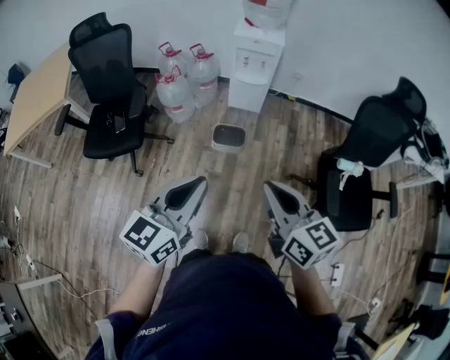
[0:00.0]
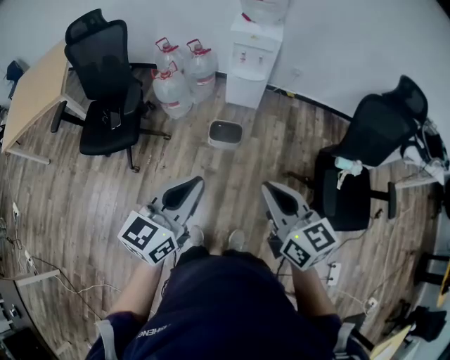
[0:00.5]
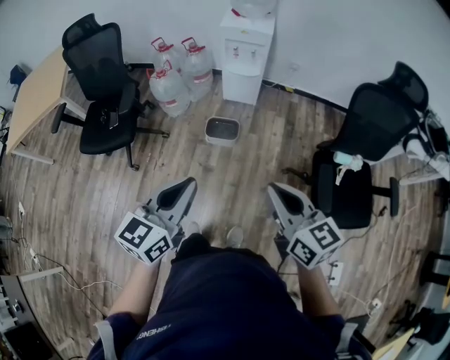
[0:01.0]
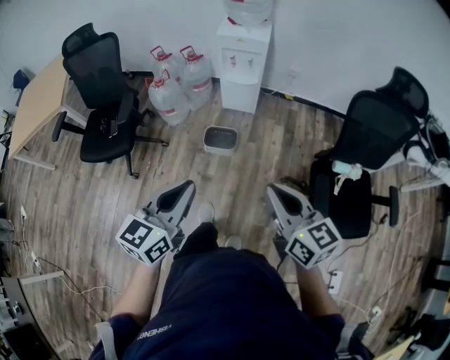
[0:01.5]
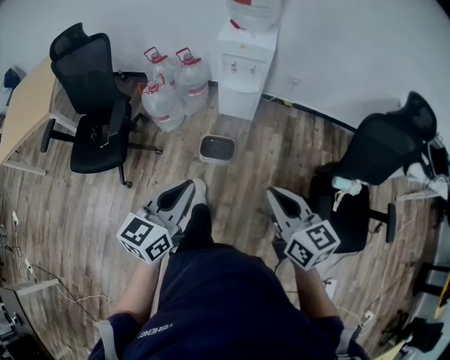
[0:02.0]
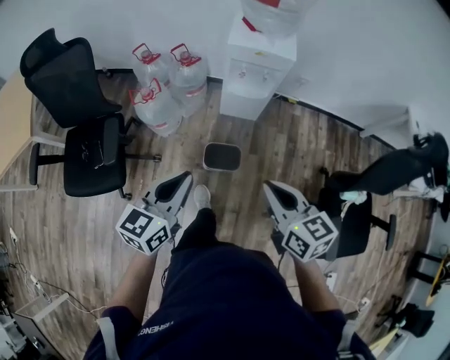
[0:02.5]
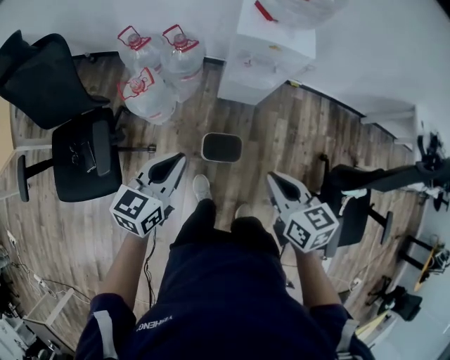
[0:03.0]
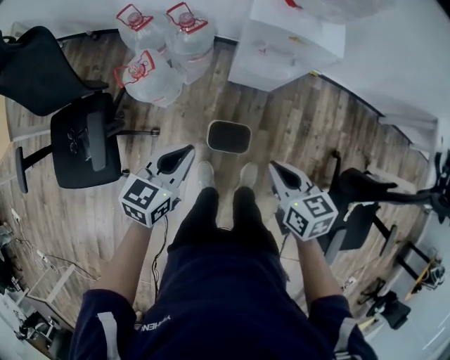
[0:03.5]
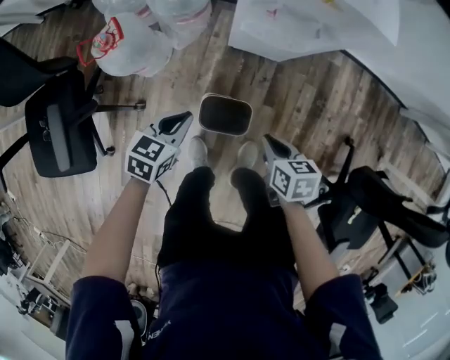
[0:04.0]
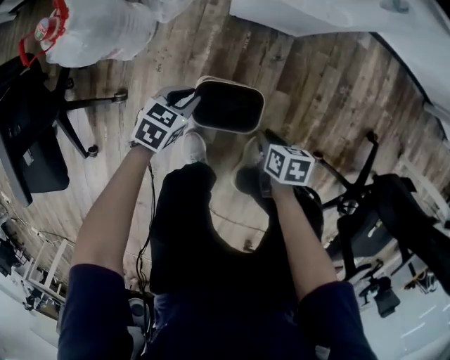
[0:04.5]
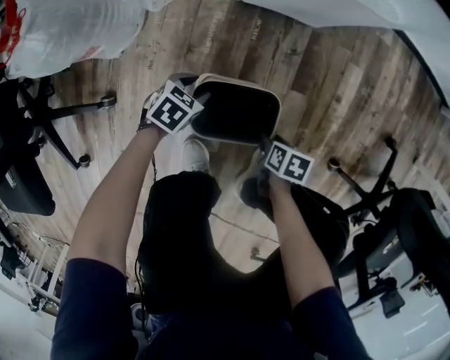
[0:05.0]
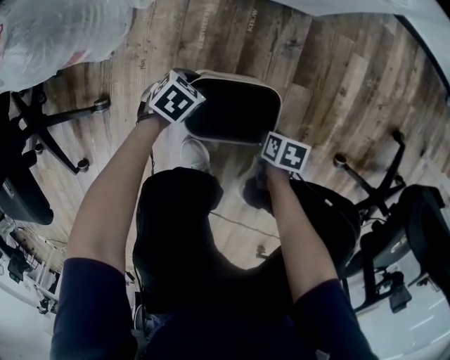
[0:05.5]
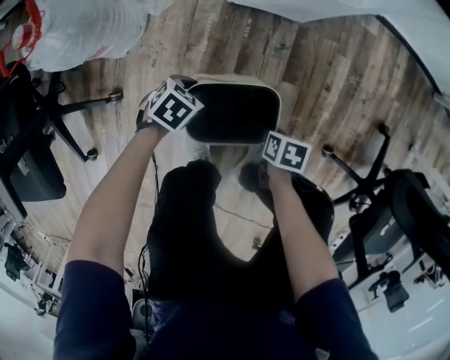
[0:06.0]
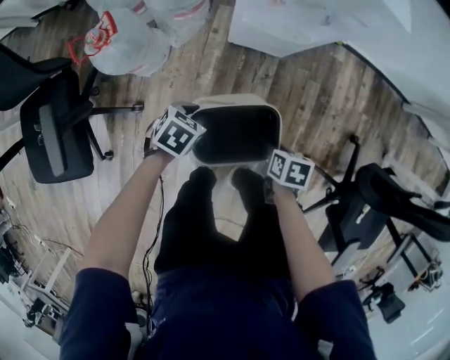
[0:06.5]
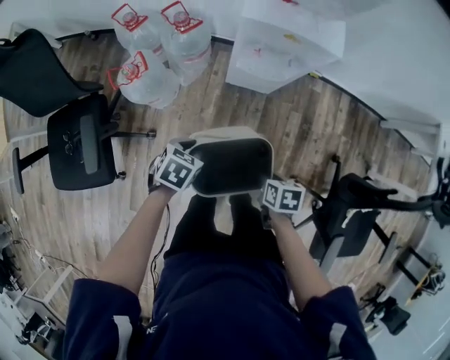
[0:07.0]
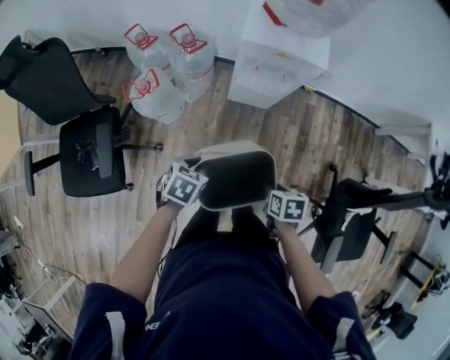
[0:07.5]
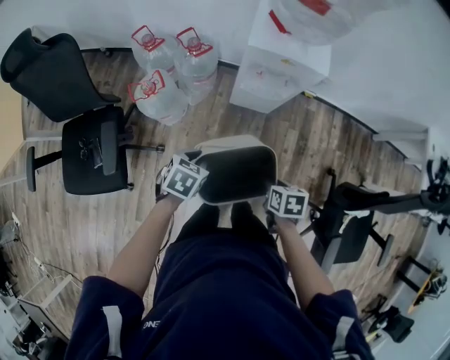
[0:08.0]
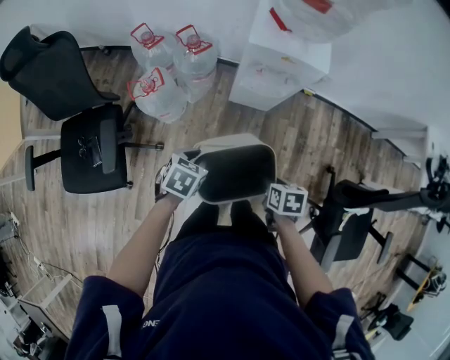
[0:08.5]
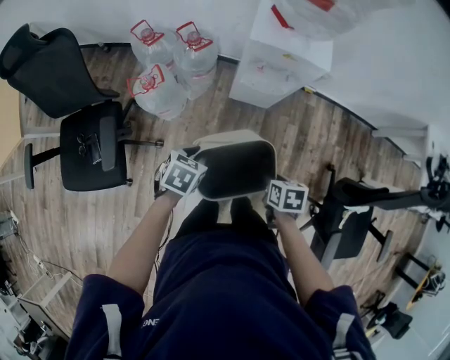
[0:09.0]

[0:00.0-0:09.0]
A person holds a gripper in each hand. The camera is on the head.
0:00.0 to 0:02.0: The right gripper travels forward, to the right and downward by approximately 20 cm. The left gripper heads forward, downward and to the right, covering some 15 cm.
0:02.0 to 0:04.5: Both grippers move downward and forward, approximately 80 cm. The right gripper tilts its fingers approximately 50 degrees downward. The left gripper angles its fingers downward, by approximately 40 degrees.
0:04.5 to 0:07.0: Both grippers travel together upward, roughly 35 cm. The left gripper opens and closes again; the right gripper opens, then closes once more.
0:07.0 to 0:09.0: The two grippers go roughly 10 cm upward.

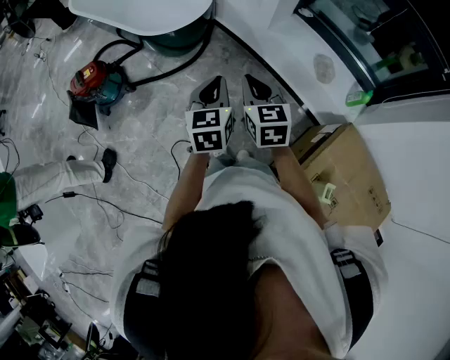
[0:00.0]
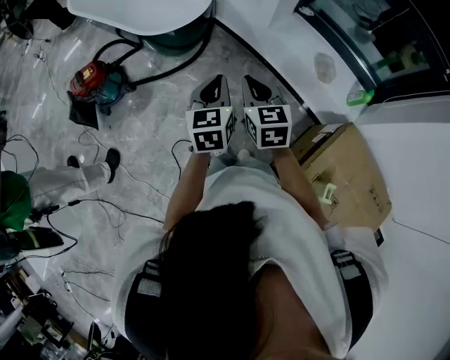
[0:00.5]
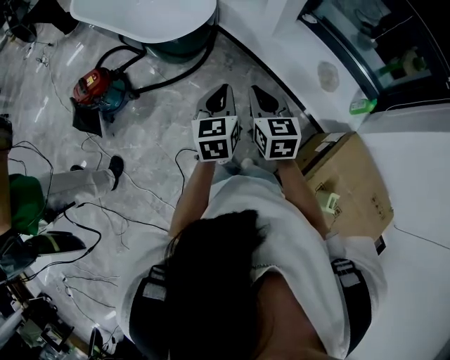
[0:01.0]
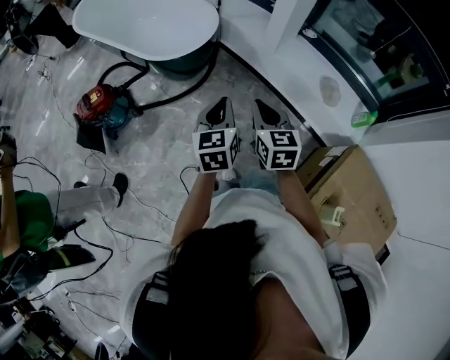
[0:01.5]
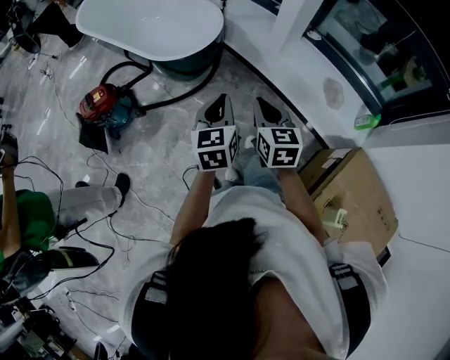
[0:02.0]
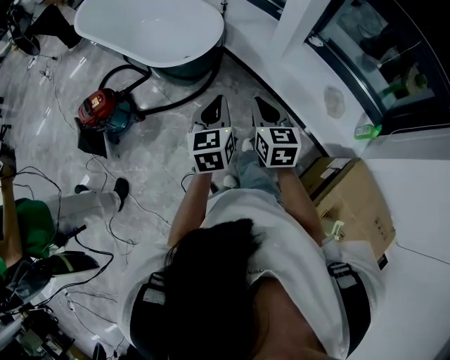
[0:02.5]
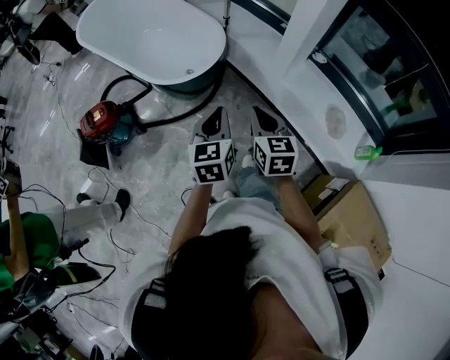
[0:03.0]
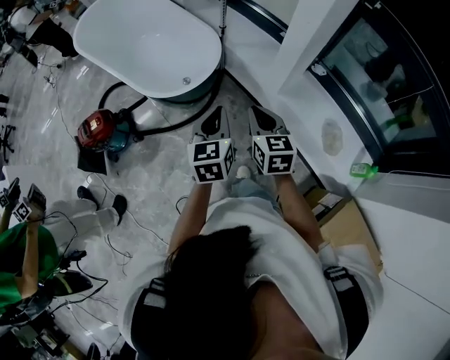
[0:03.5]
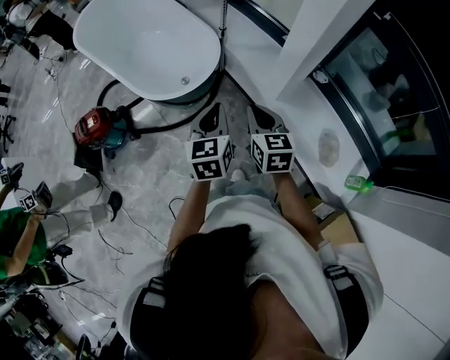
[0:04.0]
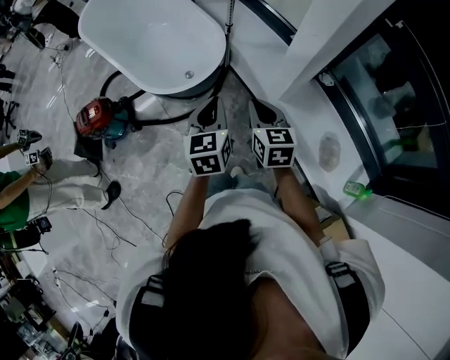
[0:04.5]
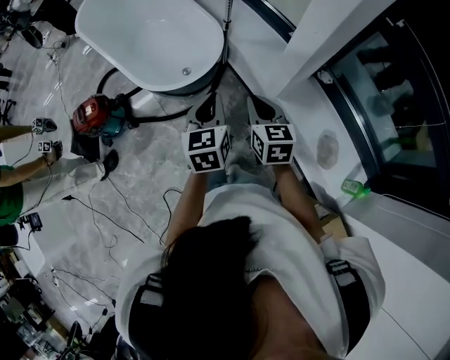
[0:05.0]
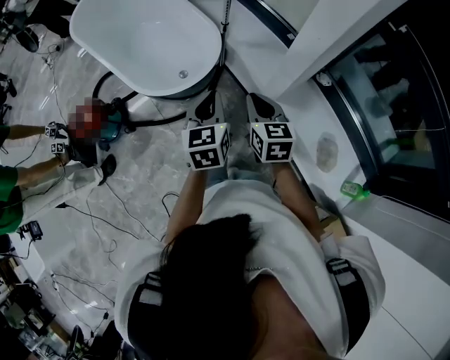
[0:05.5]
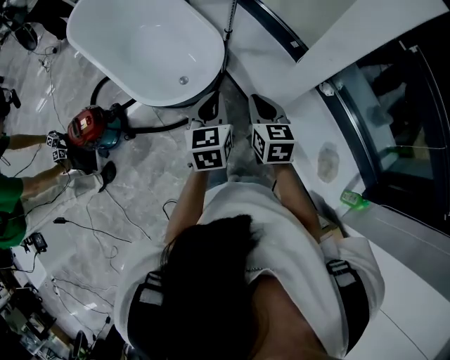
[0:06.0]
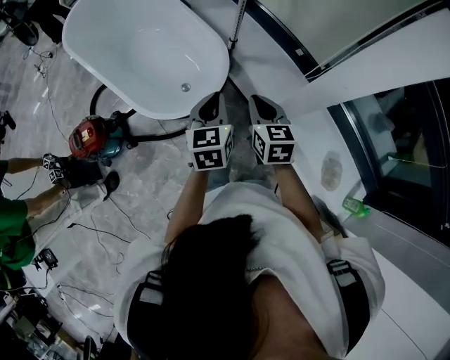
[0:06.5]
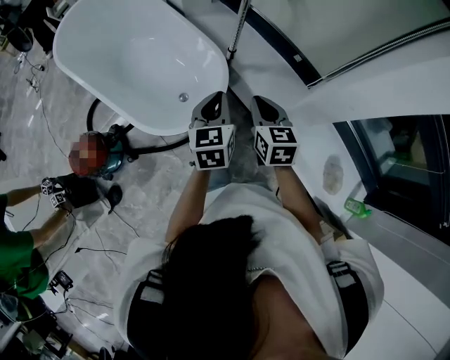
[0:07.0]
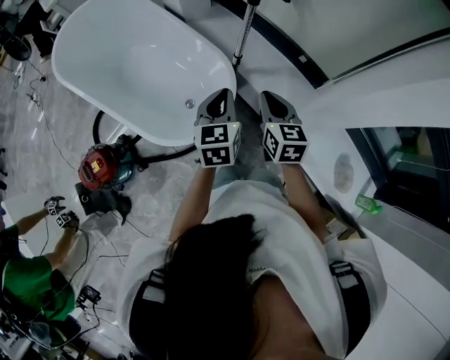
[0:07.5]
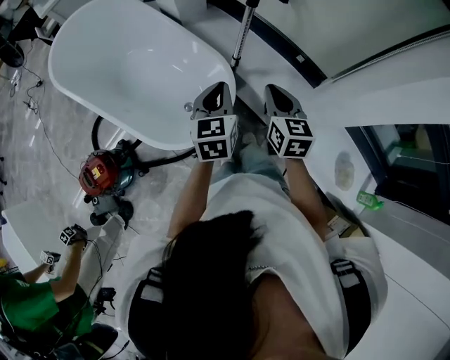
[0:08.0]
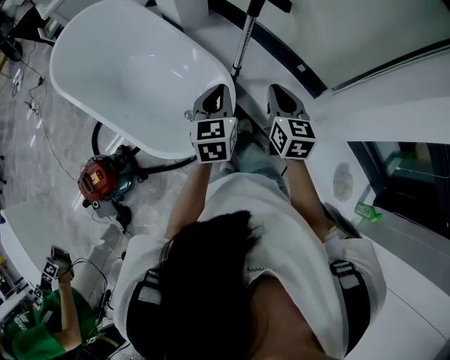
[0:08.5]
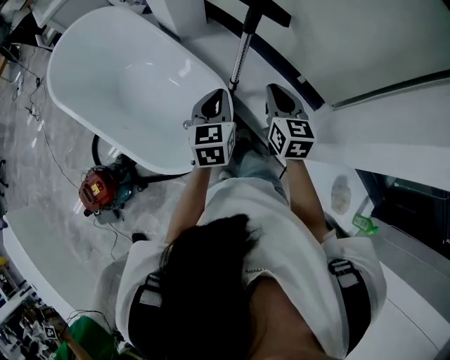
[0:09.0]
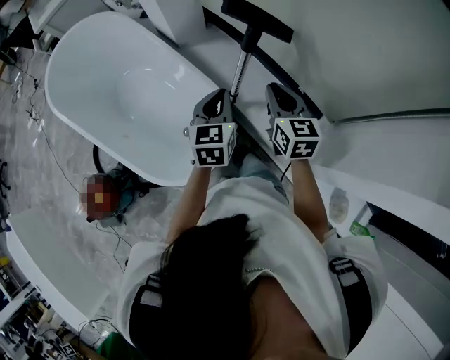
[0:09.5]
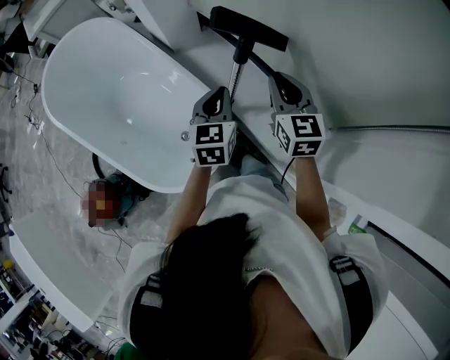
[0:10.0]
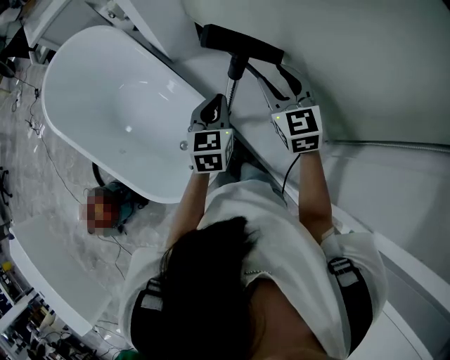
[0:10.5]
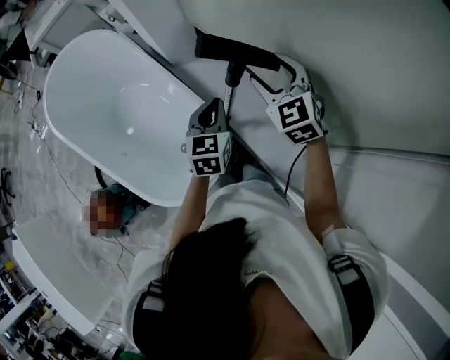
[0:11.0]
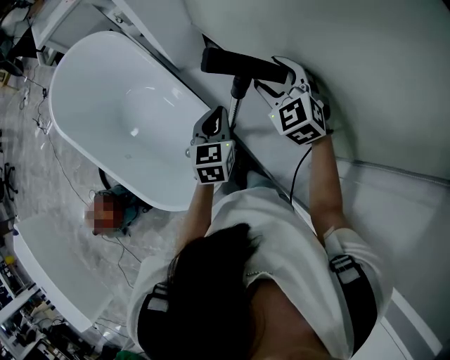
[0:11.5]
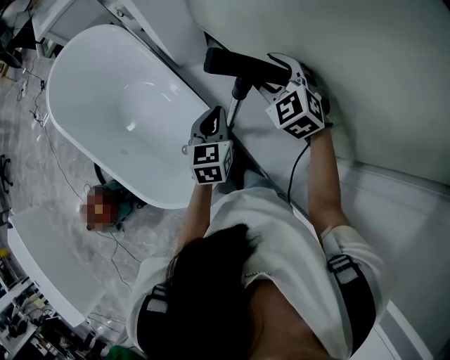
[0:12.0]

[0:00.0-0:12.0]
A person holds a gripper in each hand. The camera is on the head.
0:00.0 to 0:02.0: The right gripper shifts approximately 5 cm forward; the left gripper goes approximately 10 cm forward and to the left.
0:02.0 to 0:04.0: The two grippers go some 25 cm forward.
0:04.0 to 0:06.0: The two grippers go some 10 cm forward.
0:06.0 to 0:08.0: Both grippers move forward, approximately 20 cm.
0:08.0 to 0:10.0: The grippers both shift forward by about 20 cm.
0:10.0 to 0:12.0: The right gripper is displaced forward by approximately 10 cm, twists approximately 40 degrees counterclockwise, seen from behind, and opens up, while the left gripper shifts by some 5 cm.

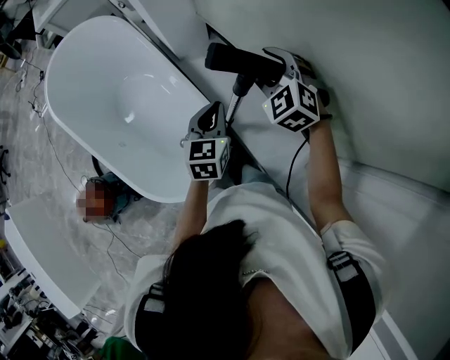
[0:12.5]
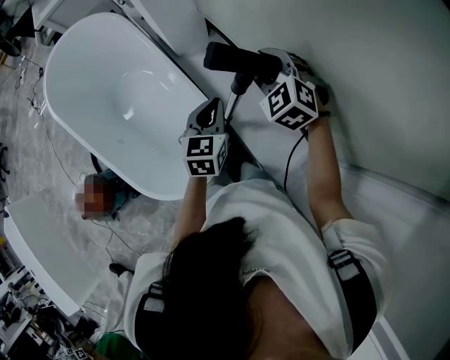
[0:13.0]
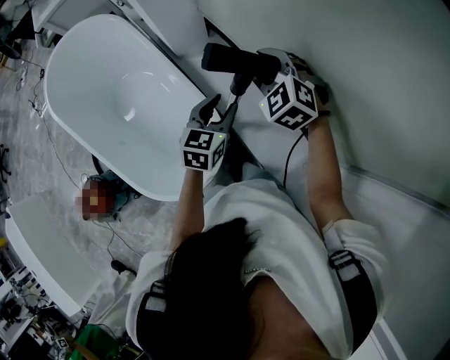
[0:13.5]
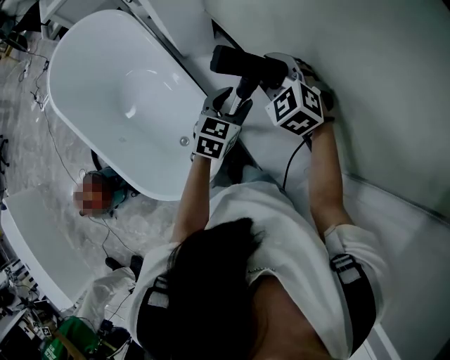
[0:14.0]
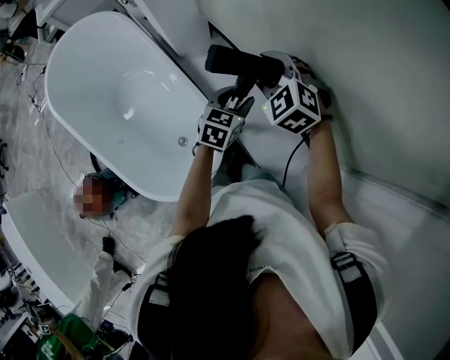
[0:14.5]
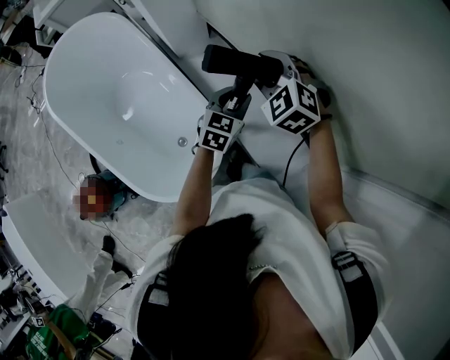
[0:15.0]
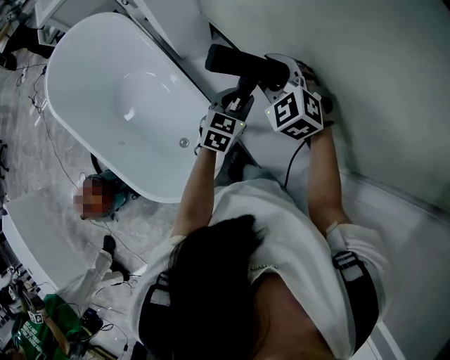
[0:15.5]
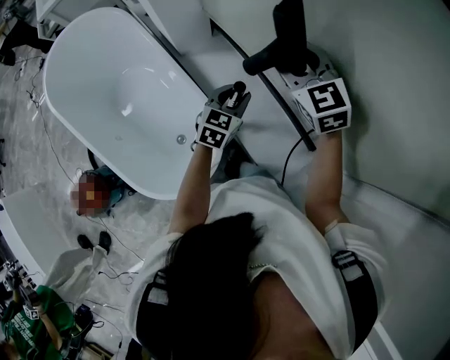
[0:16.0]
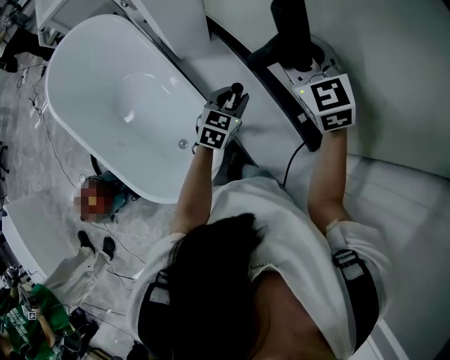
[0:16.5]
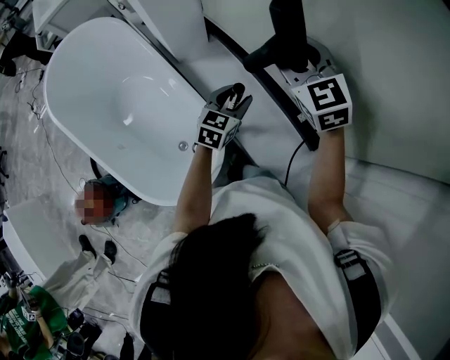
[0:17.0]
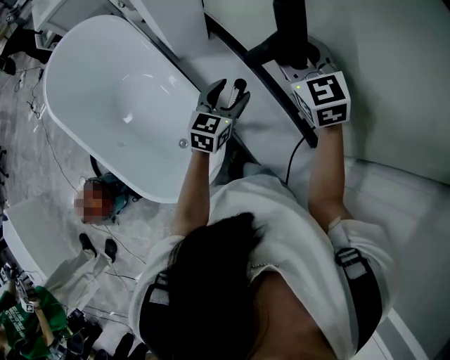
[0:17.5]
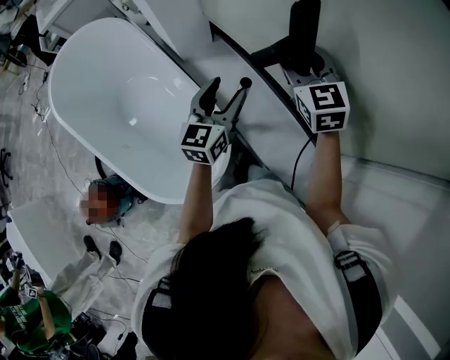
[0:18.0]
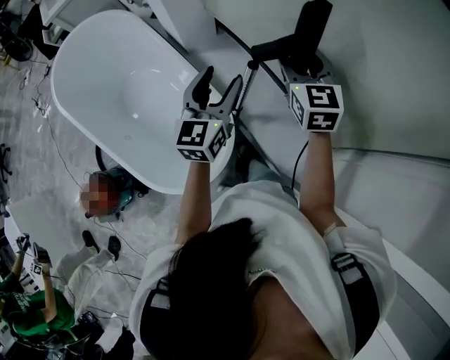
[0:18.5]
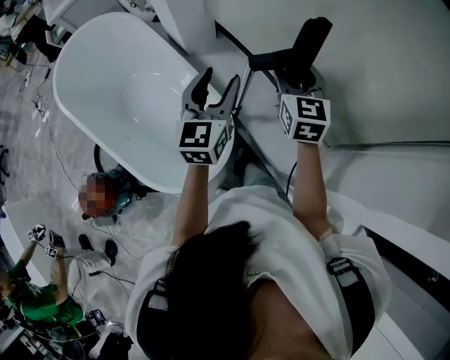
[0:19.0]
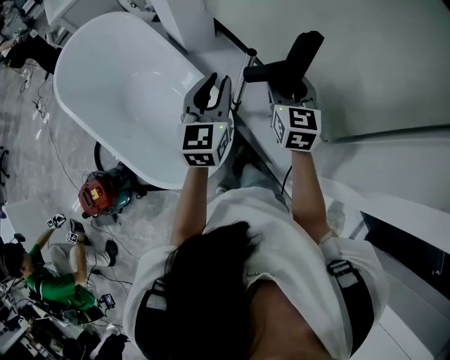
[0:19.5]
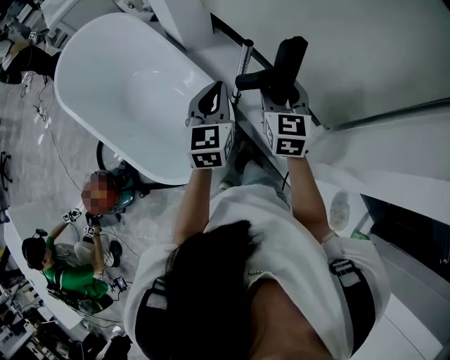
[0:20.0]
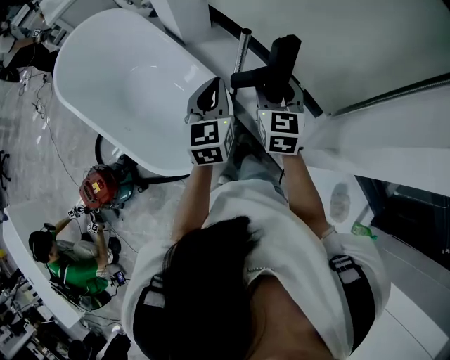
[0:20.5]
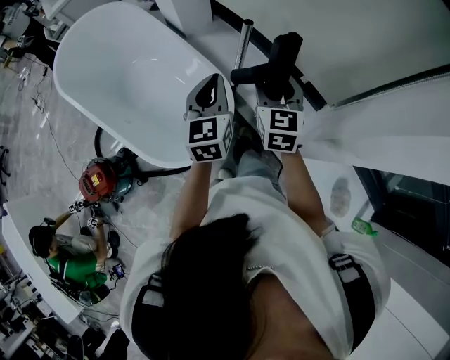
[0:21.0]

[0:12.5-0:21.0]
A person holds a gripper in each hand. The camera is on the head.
0:12.5 to 0:14.5: The left gripper goes about 10 cm to the right and downward, changes its angle by some 20 degrees, and opens its fingers.
0:14.5 to 0:16.5: The right gripper shifts roughly 10 cm upward, and swivels approximately 30 degrees.
0:16.5 to 0:19.0: The left gripper travels upward, to the left and backward by about 20 cm, swivels some 30 degrees, and opens its fingers, while the right gripper travels backward by some 10 cm, and rotates some 30 degrees.
0:19.0 to 0:21.0: The two grippers go about 15 cm backward. The left gripper closes its fingers.
